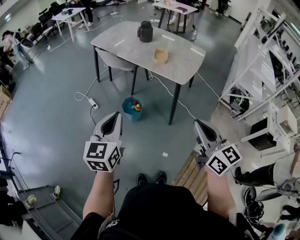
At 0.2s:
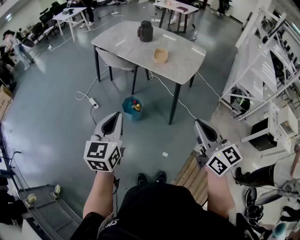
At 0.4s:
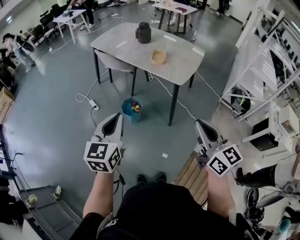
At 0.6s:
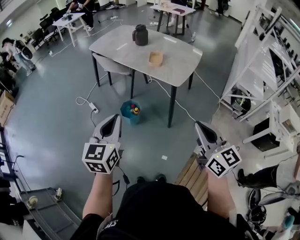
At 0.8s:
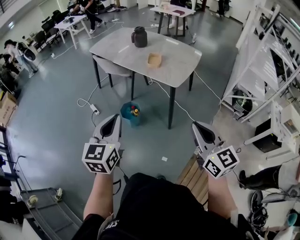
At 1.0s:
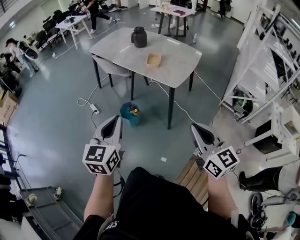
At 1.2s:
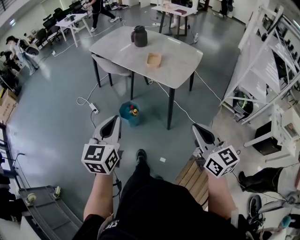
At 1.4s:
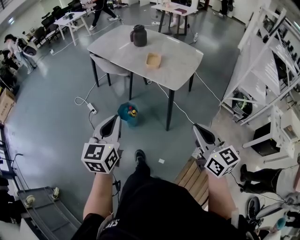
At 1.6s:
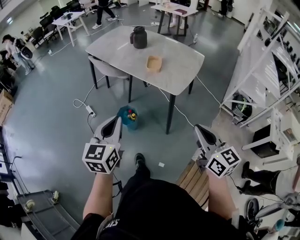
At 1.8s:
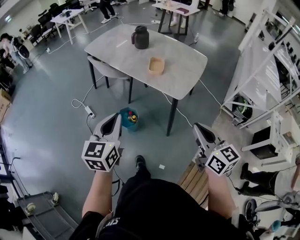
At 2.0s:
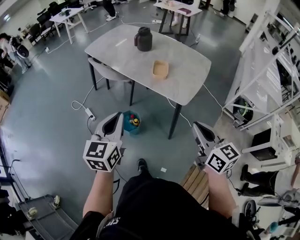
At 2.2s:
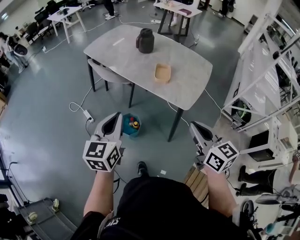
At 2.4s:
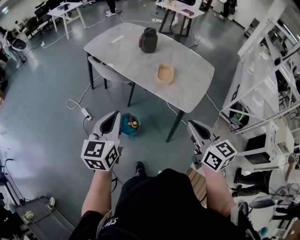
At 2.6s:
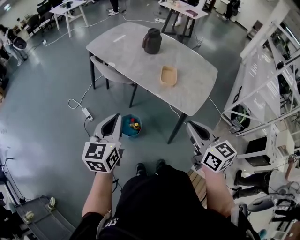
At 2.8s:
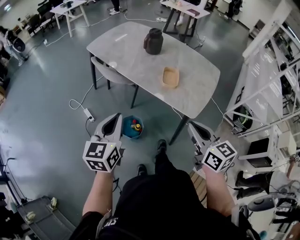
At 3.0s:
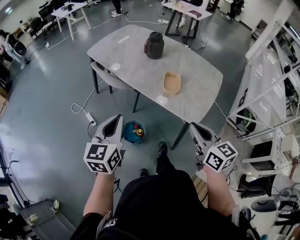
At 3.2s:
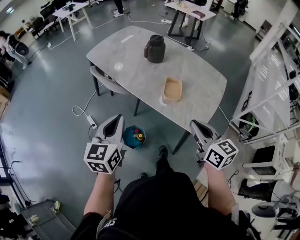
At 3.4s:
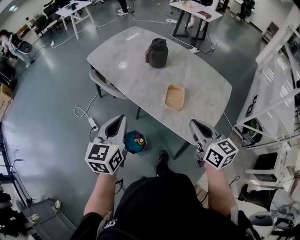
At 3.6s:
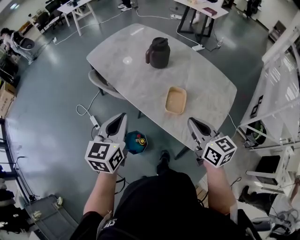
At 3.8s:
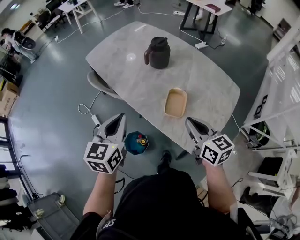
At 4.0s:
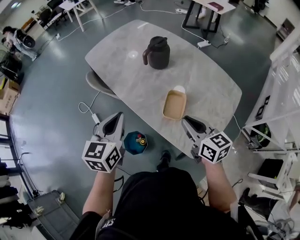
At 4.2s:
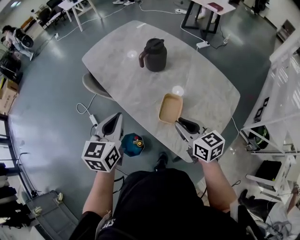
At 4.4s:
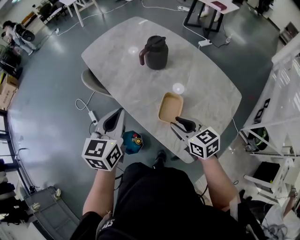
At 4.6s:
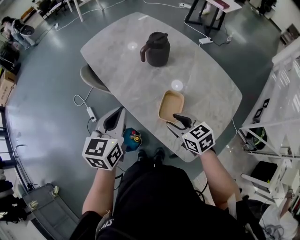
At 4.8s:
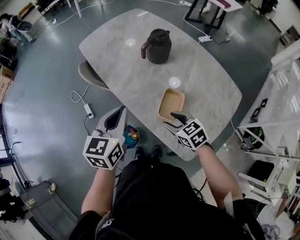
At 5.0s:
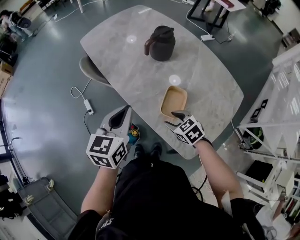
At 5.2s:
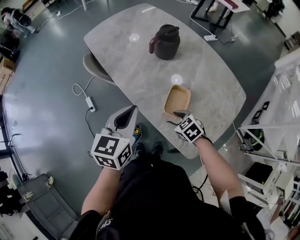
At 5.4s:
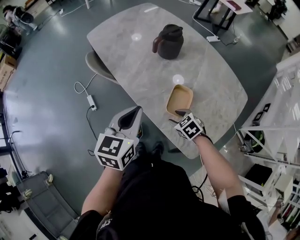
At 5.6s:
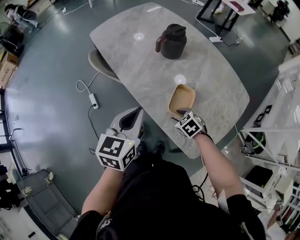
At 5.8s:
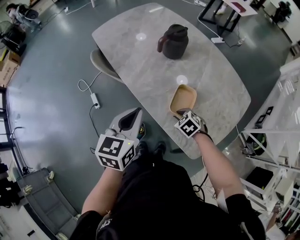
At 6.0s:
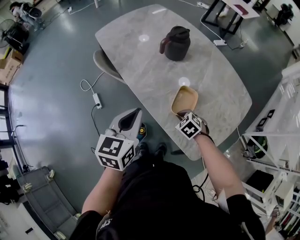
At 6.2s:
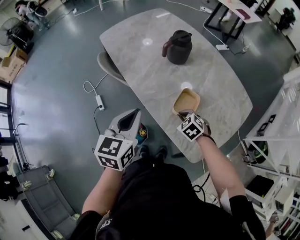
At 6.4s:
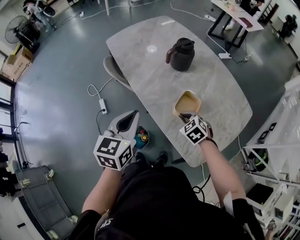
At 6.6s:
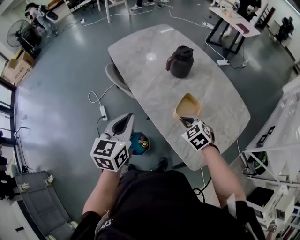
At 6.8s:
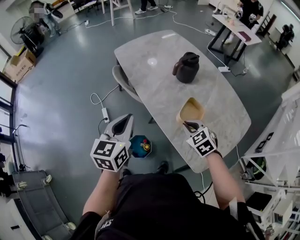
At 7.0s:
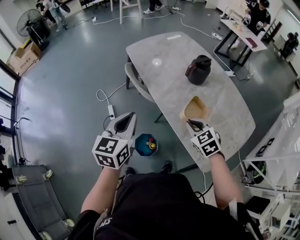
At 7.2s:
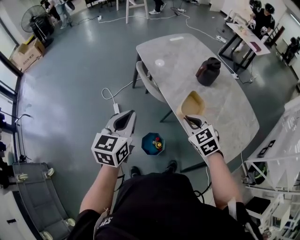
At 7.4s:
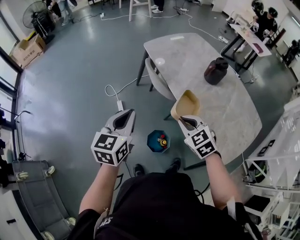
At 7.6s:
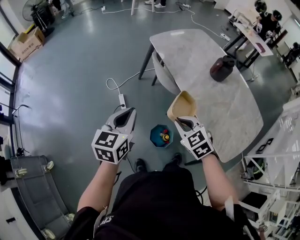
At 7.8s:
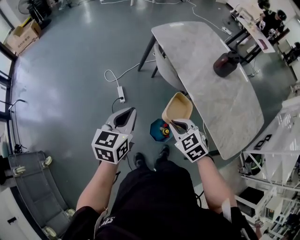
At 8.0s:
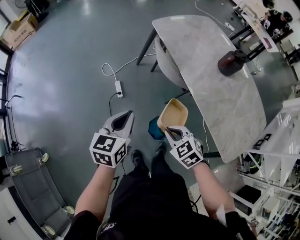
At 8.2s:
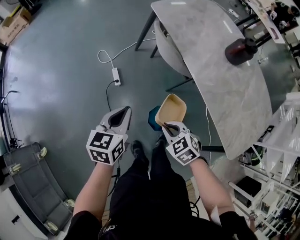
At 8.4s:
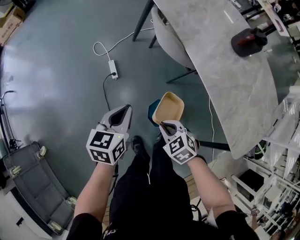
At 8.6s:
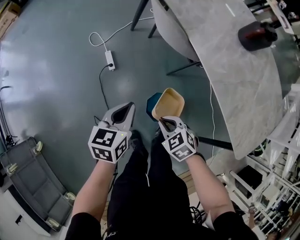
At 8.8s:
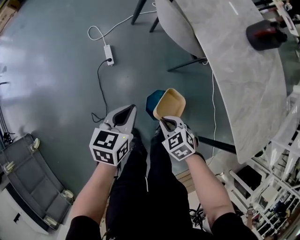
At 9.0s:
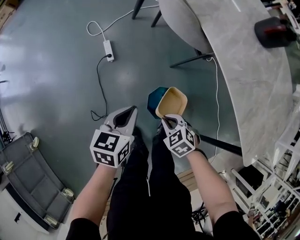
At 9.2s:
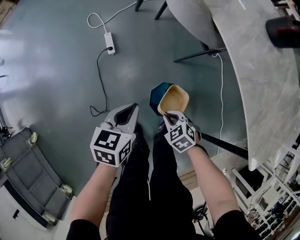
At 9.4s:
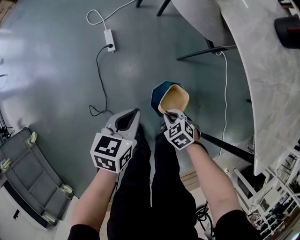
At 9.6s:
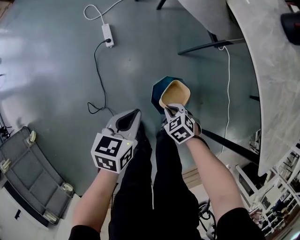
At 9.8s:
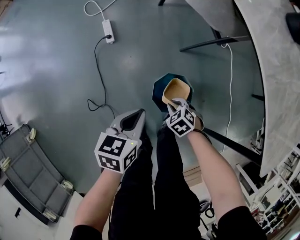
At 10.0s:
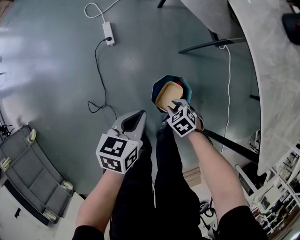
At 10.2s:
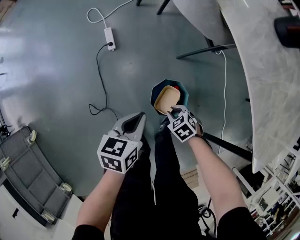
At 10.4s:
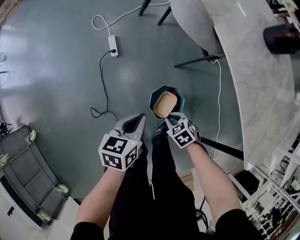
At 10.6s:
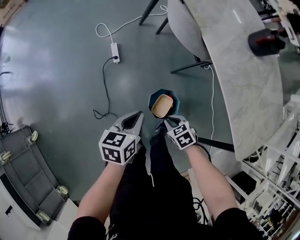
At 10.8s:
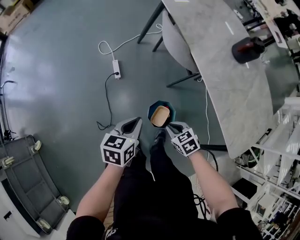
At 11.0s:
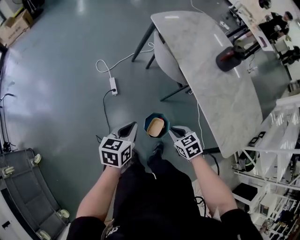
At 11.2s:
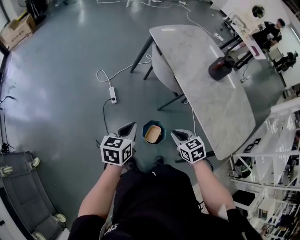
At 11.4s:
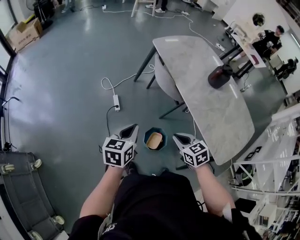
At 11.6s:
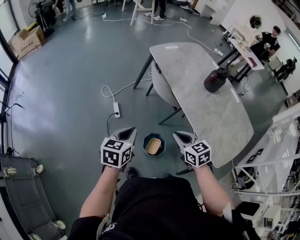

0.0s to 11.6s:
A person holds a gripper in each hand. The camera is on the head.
0.0s to 1.4s: The grippers both shift to the right by some 10 cm.
1.4s to 2.8s: The two grippers go approximately 25 cm forward.
2.8s to 4.4s: The right gripper is displaced forward and downward by approximately 35 cm, changes its angle by roughly 30 degrees, and opens. Meanwhile the left gripper travels forward and to the right by about 30 cm.
4.4s to 5.8s: The right gripper goes roughly 20 cm downward, tips its fingers downward by roughly 40 degrees, and opens, then closes again; the left gripper ends up roughly 5 cm from where it was.
5.8s to 7.2s: The left gripper goes roughly 25 cm to the left, while the right gripper travels upward and to the left by roughly 30 cm, and swivels roughly 30 degrees.
7.2s to 8.8s: The right gripper moves downward and to the left, about 40 cm, and changes its angle by about 30 degrees. The left gripper heads downward, covering about 35 cm, and rotates approximately 30 degrees.
8.8s to 10.2s: The left gripper goes about 10 cm downward, while the right gripper shifts about 20 cm downward.
10.2s to 11.6s: The two grippers go about 40 cm upward. The left gripper turns by some 20 degrees. The right gripper angles its fingers upward, by about 40 degrees.

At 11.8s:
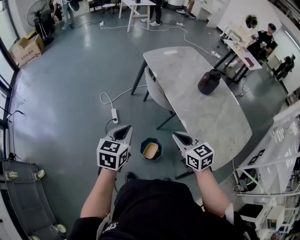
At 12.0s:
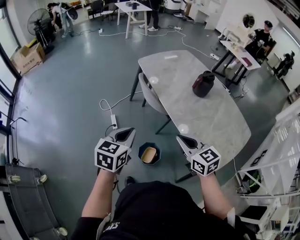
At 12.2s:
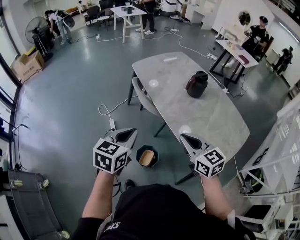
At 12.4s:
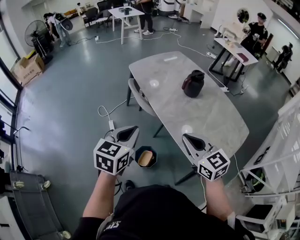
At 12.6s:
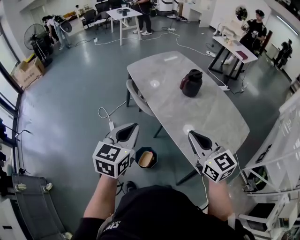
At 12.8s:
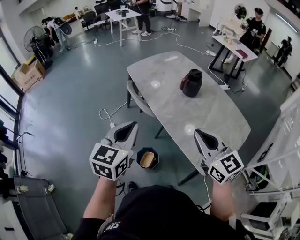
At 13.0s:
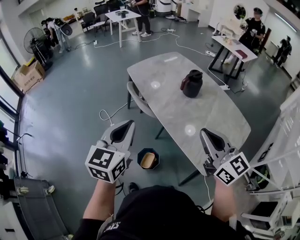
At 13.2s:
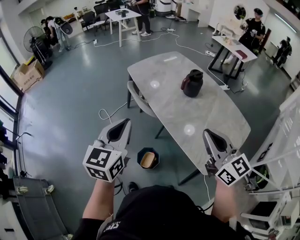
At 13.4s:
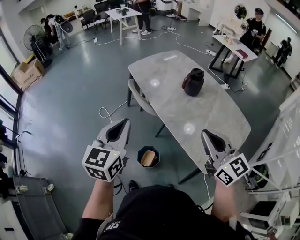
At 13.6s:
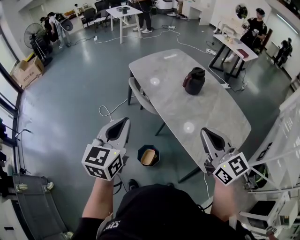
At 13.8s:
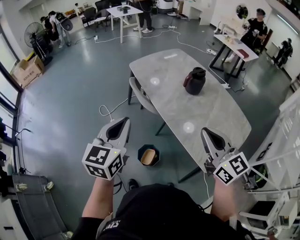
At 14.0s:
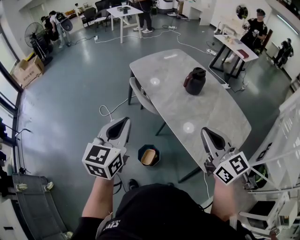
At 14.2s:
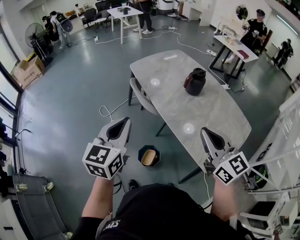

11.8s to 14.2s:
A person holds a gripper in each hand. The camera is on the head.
11.8s to 13.0s: The left gripper shifts approximately 25 cm upward and to the right. Meanwhile the right gripper heads to the right and upward, covering approximately 30 cm, and turns by roughly 30 degrees.
13.0s to 14.2s: The grippers move only a little.

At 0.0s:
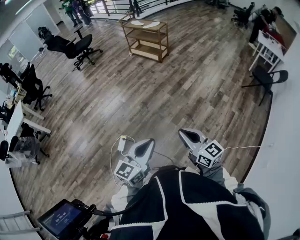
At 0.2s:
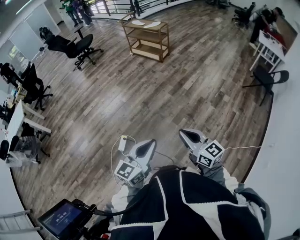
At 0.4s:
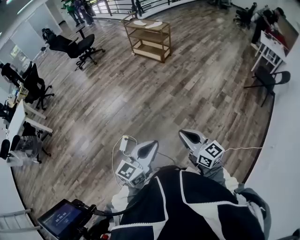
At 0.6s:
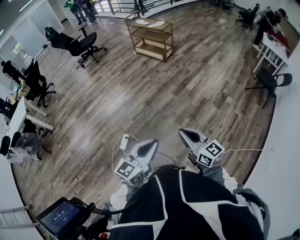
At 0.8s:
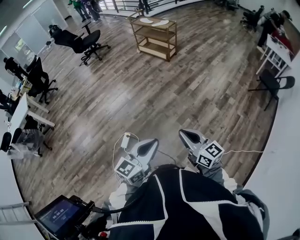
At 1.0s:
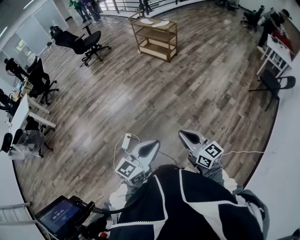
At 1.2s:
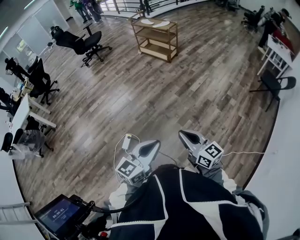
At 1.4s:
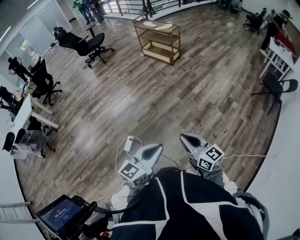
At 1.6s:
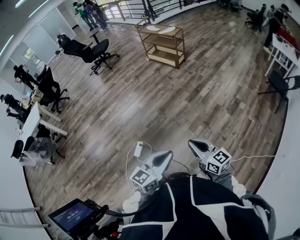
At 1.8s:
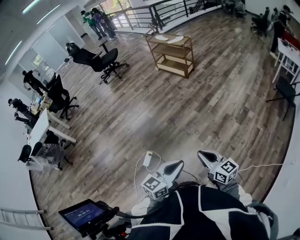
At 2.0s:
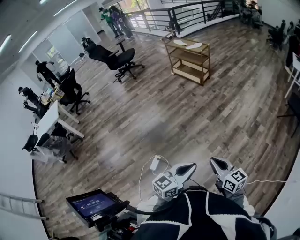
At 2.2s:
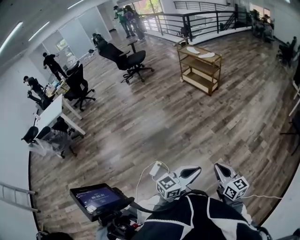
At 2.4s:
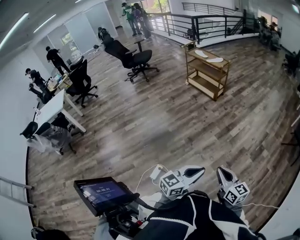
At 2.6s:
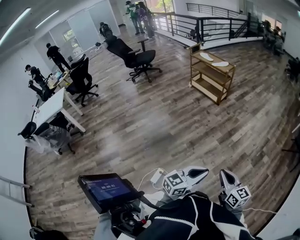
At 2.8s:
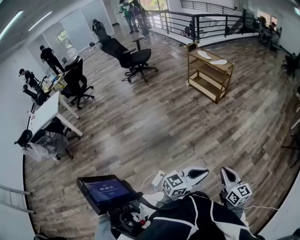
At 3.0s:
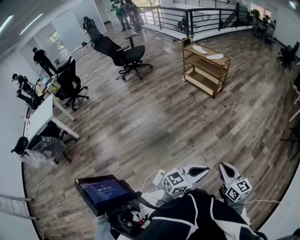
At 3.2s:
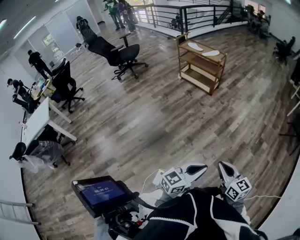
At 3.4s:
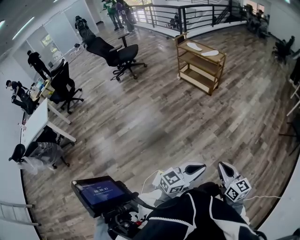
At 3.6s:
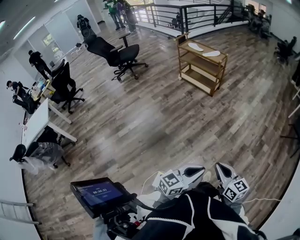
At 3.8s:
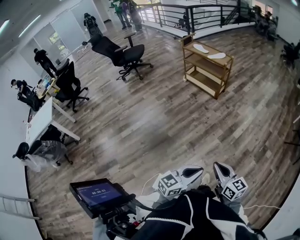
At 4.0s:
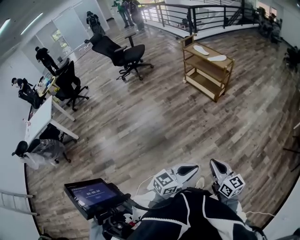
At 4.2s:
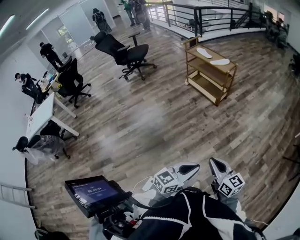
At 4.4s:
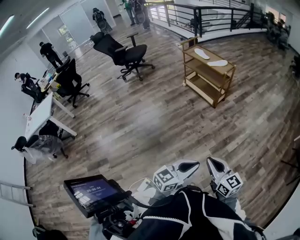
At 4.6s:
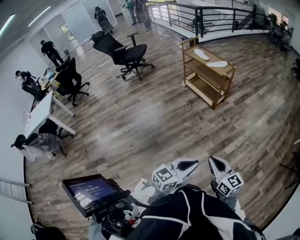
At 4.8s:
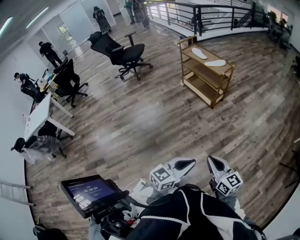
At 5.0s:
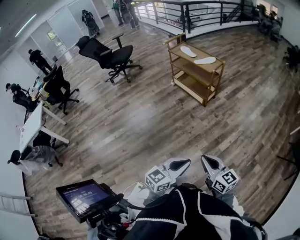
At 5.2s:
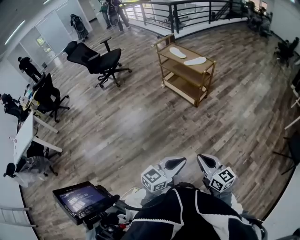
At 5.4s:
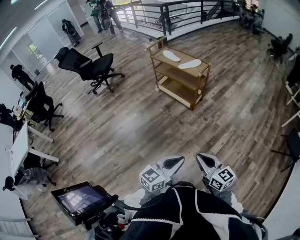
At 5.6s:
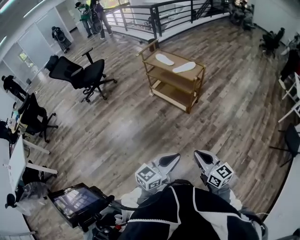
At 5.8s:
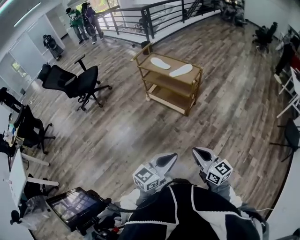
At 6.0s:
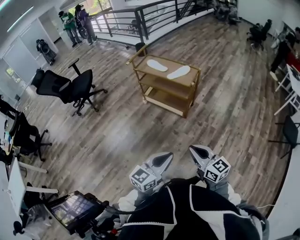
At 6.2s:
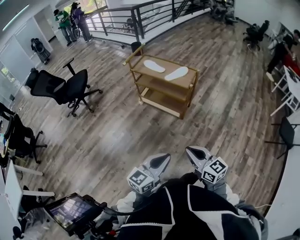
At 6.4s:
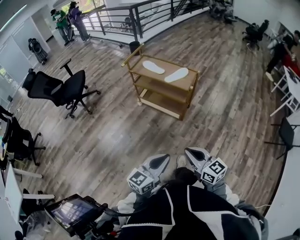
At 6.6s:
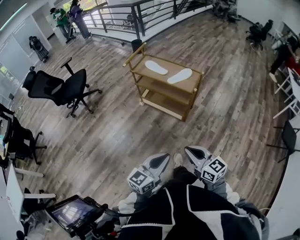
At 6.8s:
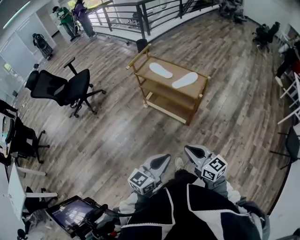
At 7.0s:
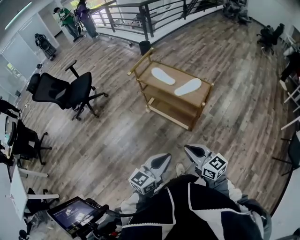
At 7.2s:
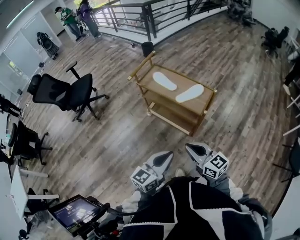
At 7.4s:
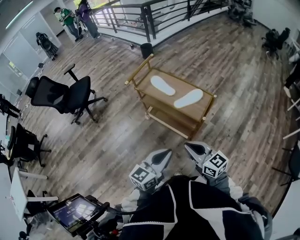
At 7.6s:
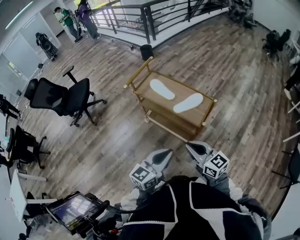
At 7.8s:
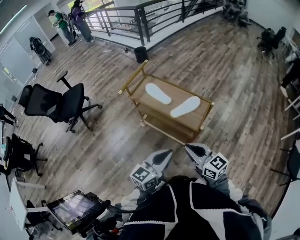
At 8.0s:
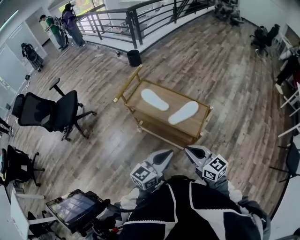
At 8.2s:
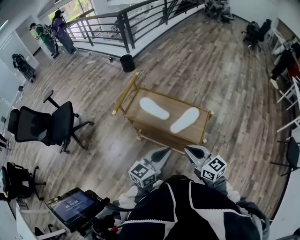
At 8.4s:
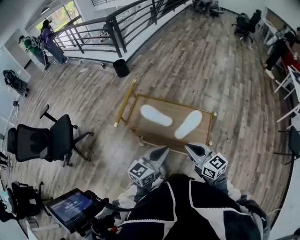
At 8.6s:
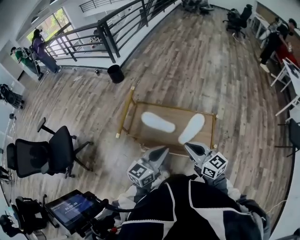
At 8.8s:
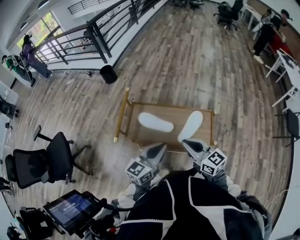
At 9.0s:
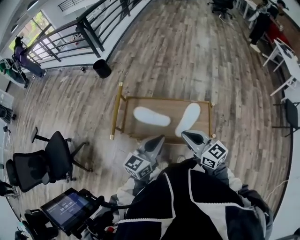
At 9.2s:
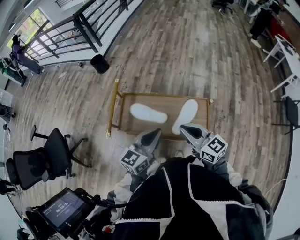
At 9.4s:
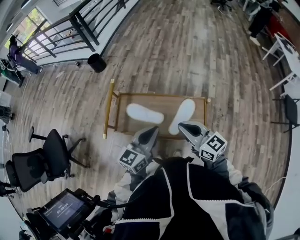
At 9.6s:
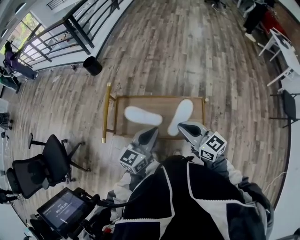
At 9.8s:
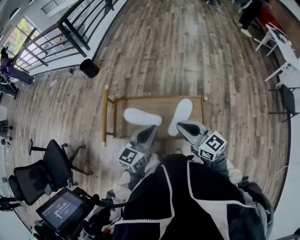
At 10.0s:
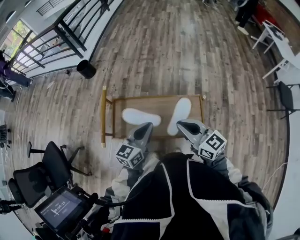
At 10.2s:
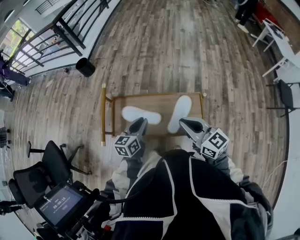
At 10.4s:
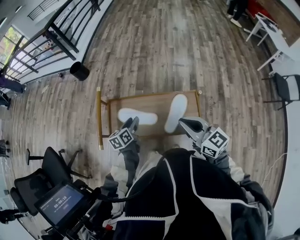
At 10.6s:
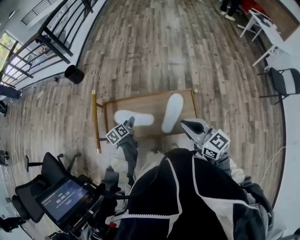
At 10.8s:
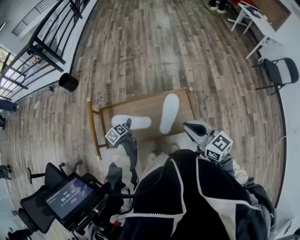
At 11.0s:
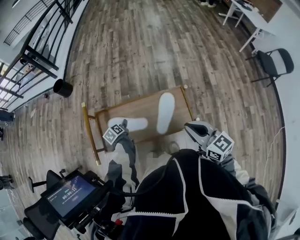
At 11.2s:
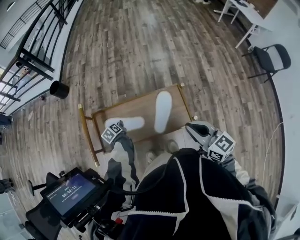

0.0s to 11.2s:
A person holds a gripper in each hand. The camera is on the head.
0.0s to 1.6s: There are only small adjustments of the grippers.
1.6s to 3.2s: Both grippers move forward and to the left, about 25 cm.
3.2s to 4.8s: Both grippers move forward, approximately 30 cm.
4.8s to 6.4s: Both grippers travel together forward and to the left, some 40 cm.
6.4s to 8.0s: The two grippers travel together, forward, some 40 cm.
8.0s to 9.6s: The left gripper heads forward and to the left, covering roughly 30 cm, while the right gripper travels forward by about 25 cm, and rotates roughly 20 degrees.
9.6s to 11.2s: The left gripper moves downward and forward, roughly 35 cm, points its fingers approximately 40 degrees further downward, and opens and closes again; the right gripper shifts roughly 10 cm to the right, and swivels some 20 degrees.
